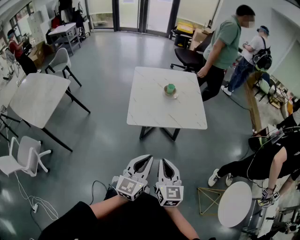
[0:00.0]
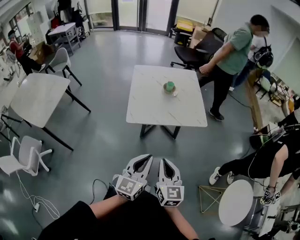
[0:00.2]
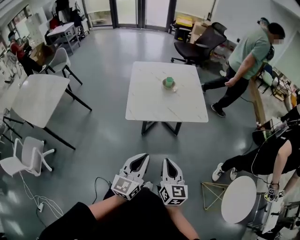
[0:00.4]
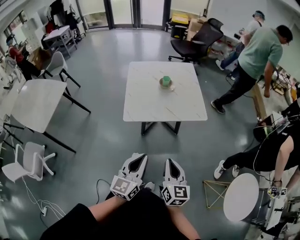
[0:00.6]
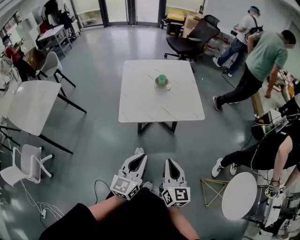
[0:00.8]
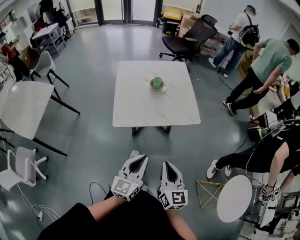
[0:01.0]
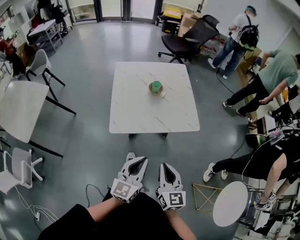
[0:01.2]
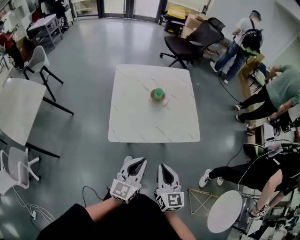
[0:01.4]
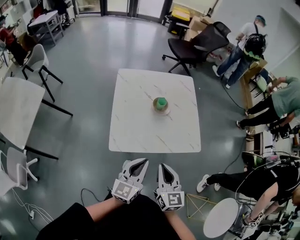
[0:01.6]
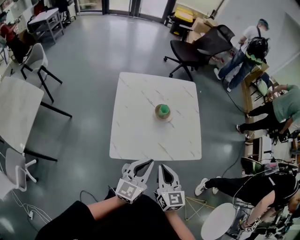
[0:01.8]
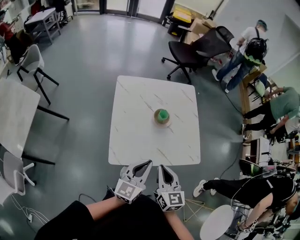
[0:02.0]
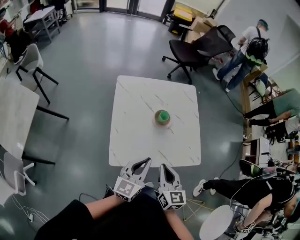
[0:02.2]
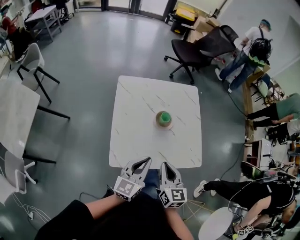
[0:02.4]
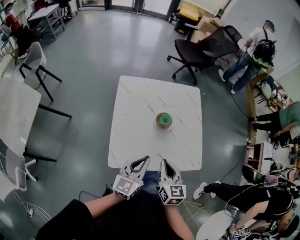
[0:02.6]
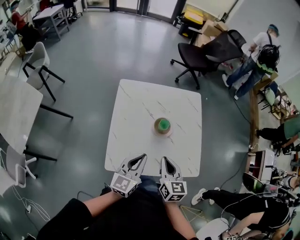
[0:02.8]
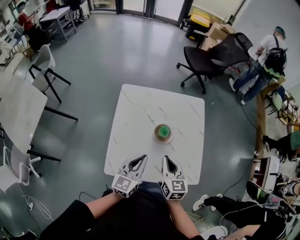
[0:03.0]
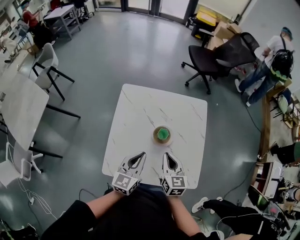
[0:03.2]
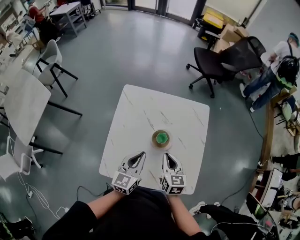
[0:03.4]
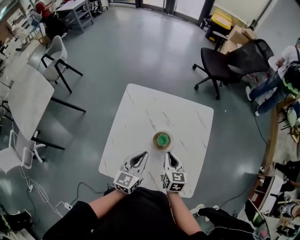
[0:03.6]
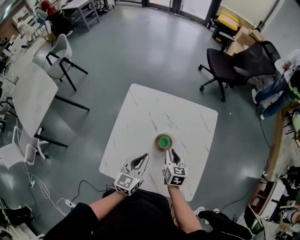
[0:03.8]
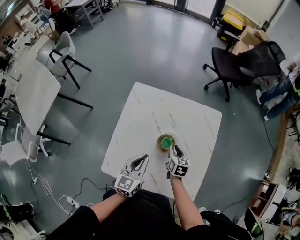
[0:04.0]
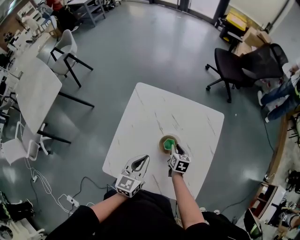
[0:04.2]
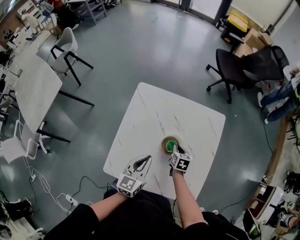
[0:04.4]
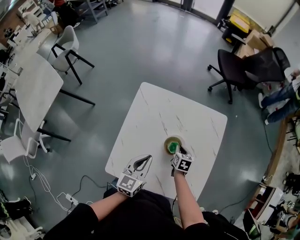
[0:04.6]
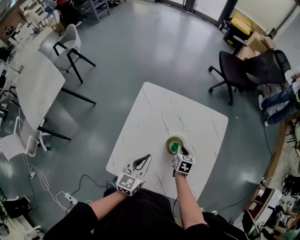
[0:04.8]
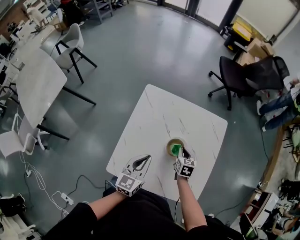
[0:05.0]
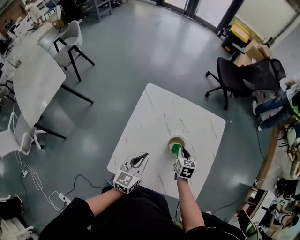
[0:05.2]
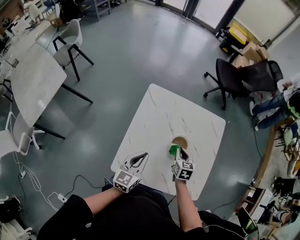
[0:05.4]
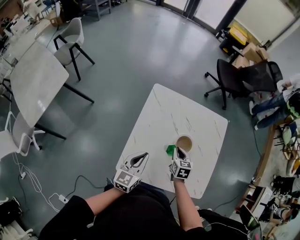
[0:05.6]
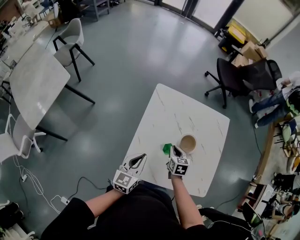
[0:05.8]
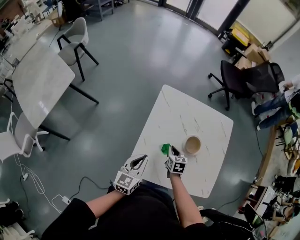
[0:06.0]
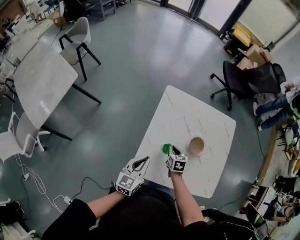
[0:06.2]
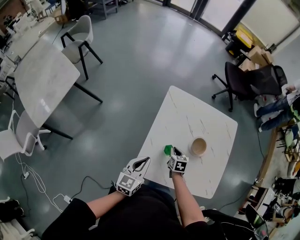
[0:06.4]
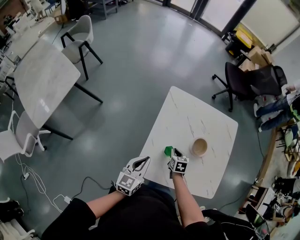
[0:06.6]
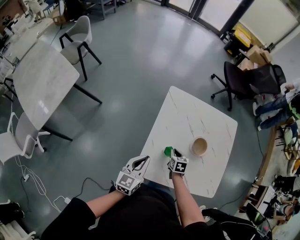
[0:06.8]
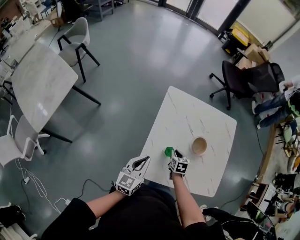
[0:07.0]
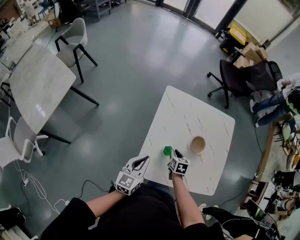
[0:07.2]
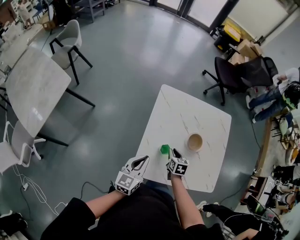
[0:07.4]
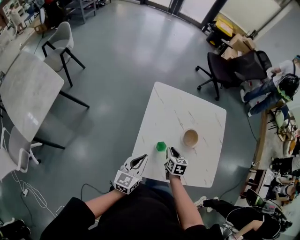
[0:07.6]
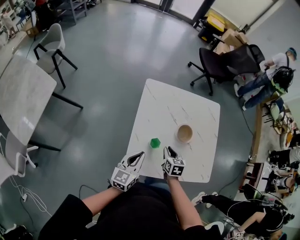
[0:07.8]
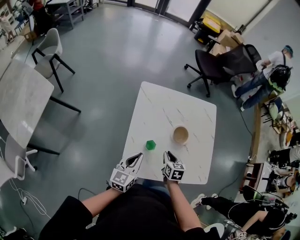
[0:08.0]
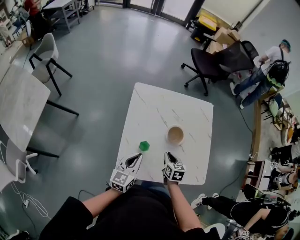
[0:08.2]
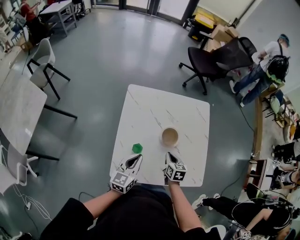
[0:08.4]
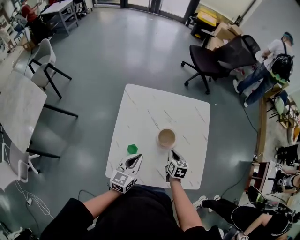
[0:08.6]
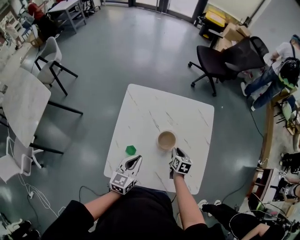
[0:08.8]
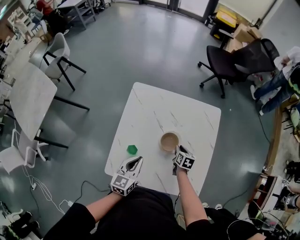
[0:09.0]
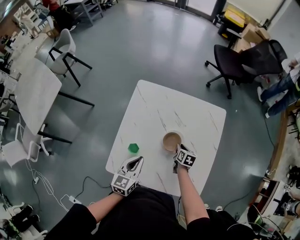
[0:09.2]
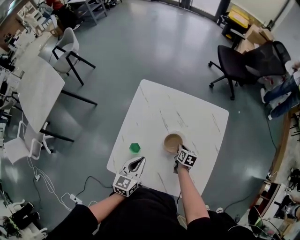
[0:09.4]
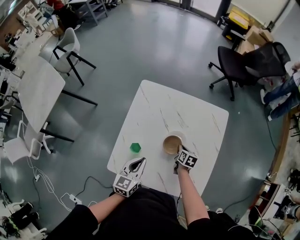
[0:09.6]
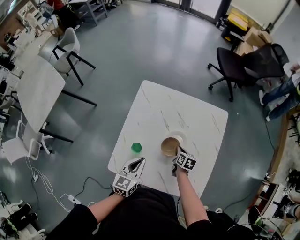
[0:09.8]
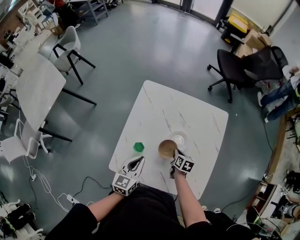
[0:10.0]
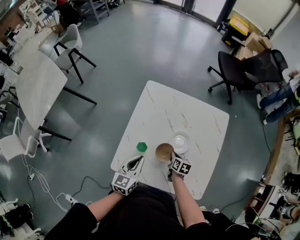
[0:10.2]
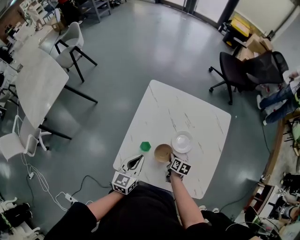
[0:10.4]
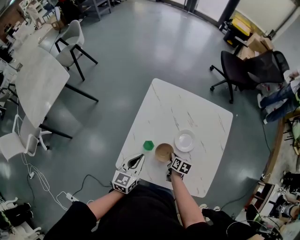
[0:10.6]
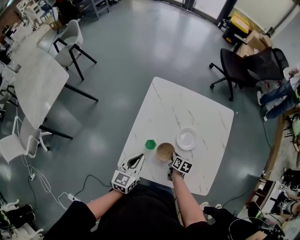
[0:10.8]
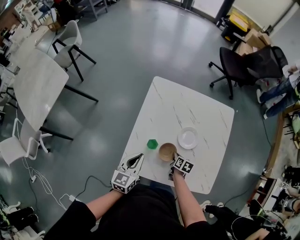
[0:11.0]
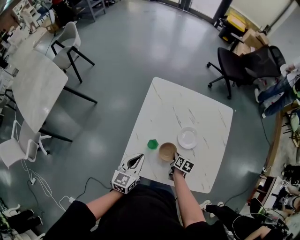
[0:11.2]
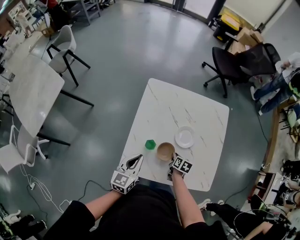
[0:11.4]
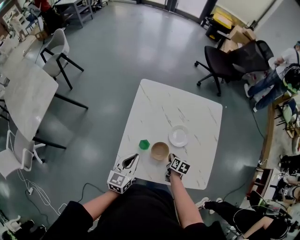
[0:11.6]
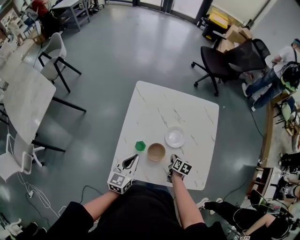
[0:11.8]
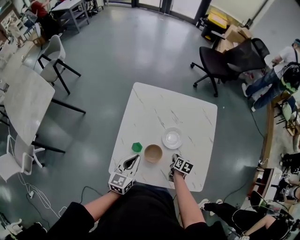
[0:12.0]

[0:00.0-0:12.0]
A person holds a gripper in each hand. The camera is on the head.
0:00.0 to 0:01.6: Both grippers travel together forward, approximately 25 cm.
0:01.6 to 0:03.0: Both grippers move forward, some 25 cm.
0:03.0 to 0:04.4: The left gripper heads forward and downward, covering some 10 cm. The right gripper is displaced downward and forward by some 30 cm, and swivels about 30 degrees.
0:04.4 to 0:06.0: Both grippers travel together to the left, approximately 20 cm.
0:06.0 to 0:07.6: The grippers stay close to where they were, moving slightly.
0:07.6 to 0:09.0: Both grippers move to the right and forward, roughly 20 cm.
0:09.0 to 0:10.4: The right gripper shifts roughly 15 cm to the left and backward. Meanwhile the left gripper heads to the left, covering roughly 5 cm.
0:10.4 to 0:12.0: The right gripper shifts about 10 cm to the right.

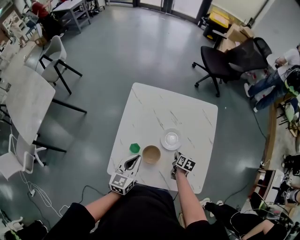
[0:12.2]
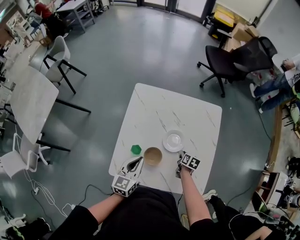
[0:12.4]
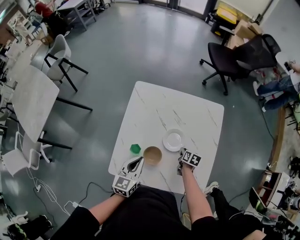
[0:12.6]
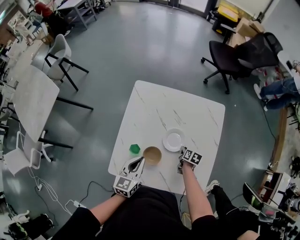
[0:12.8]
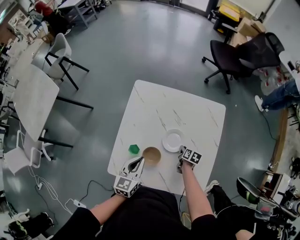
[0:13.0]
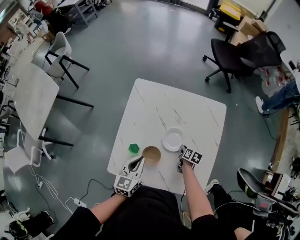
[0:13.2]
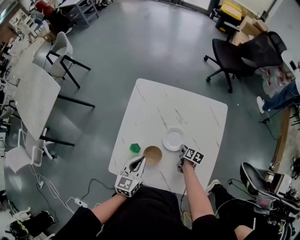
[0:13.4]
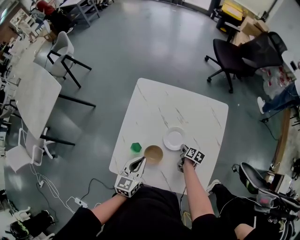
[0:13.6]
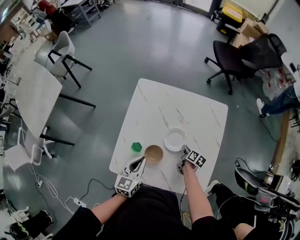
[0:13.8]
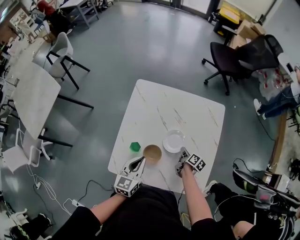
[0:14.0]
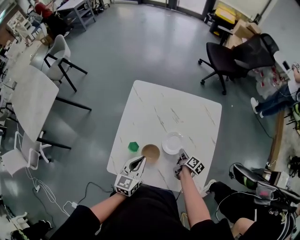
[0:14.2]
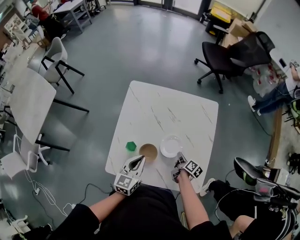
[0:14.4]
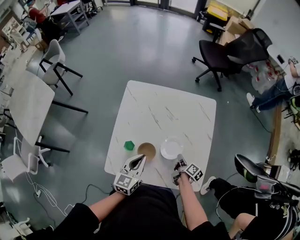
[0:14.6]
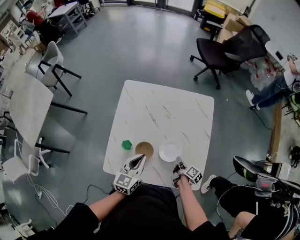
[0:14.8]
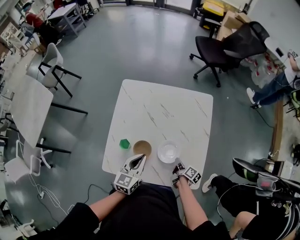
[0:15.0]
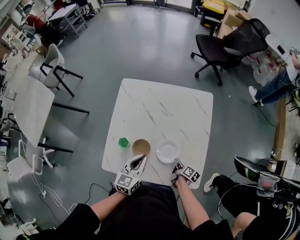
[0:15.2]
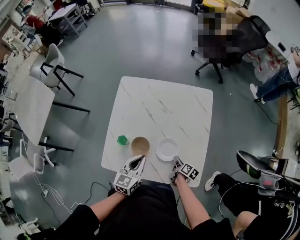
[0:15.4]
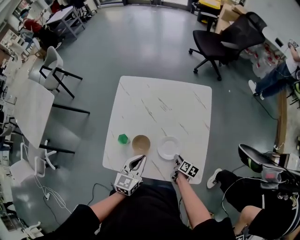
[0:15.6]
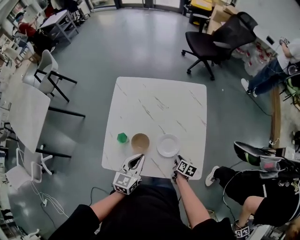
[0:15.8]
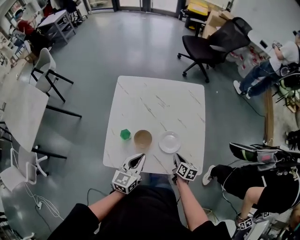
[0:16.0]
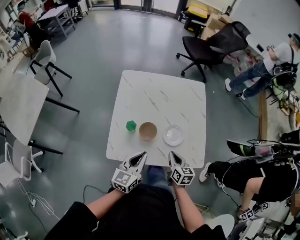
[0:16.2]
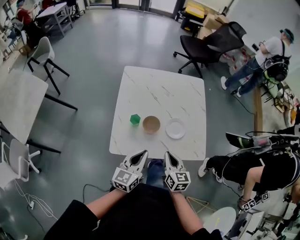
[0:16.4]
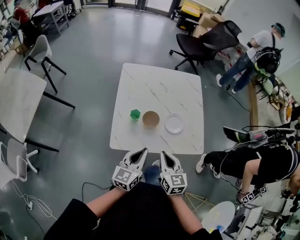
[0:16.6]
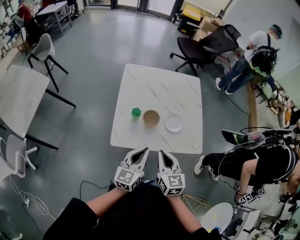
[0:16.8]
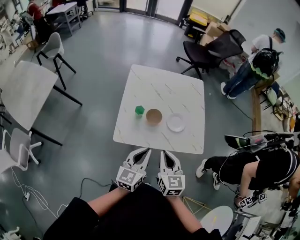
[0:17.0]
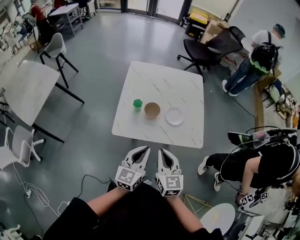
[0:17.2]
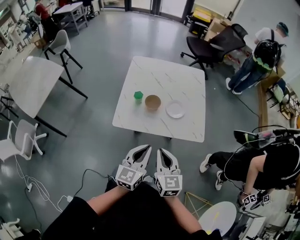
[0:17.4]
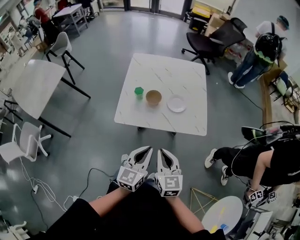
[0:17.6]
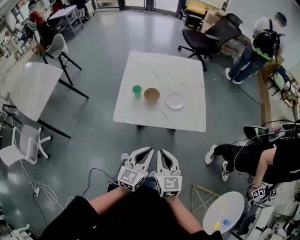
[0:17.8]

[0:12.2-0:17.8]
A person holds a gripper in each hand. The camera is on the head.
0:12.2 to 0:13.6: The right gripper travels forward by roughly 5 cm.
0:13.6 to 0:15.0: The right gripper goes some 15 cm backward, and turns by some 30 degrees; the left gripper heads to the right, covering some 5 cm.
0:15.0 to 0:16.4: The right gripper moves upward, to the left and backward, approximately 30 cm, rolls counterclockwise, seen from behind, by some 60 degrees, and opens, then closes again. Meanwhile the left gripper heads backward and to the left, covering about 20 cm.
0:16.4 to 0:17.8: The right gripper goes about 25 cm backward and upward. The left gripper heads backward and to the right, covering some 25 cm.

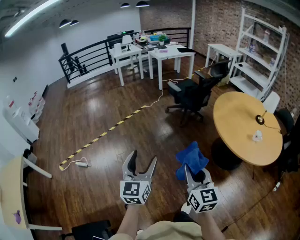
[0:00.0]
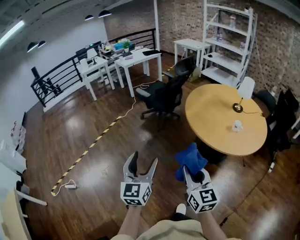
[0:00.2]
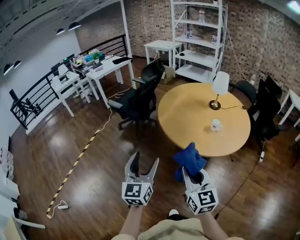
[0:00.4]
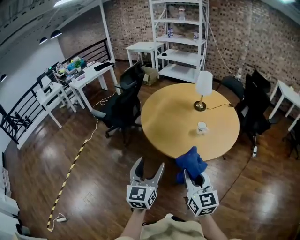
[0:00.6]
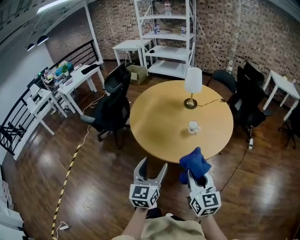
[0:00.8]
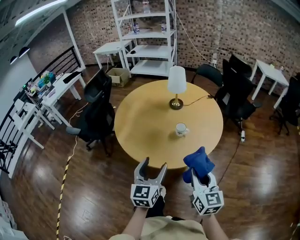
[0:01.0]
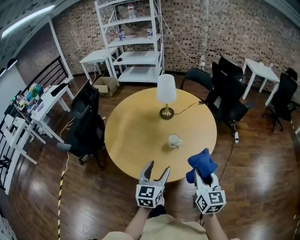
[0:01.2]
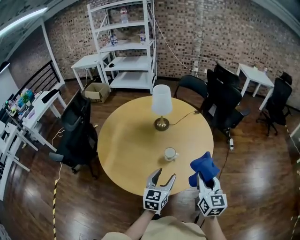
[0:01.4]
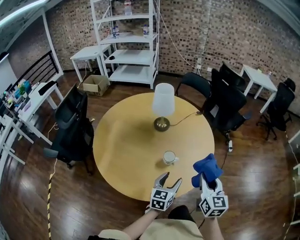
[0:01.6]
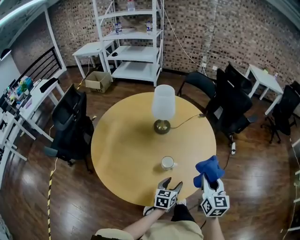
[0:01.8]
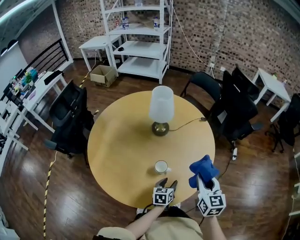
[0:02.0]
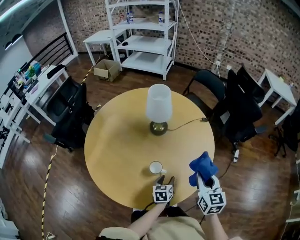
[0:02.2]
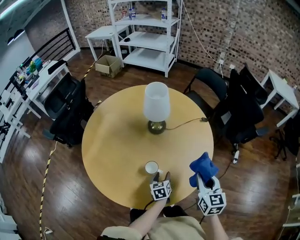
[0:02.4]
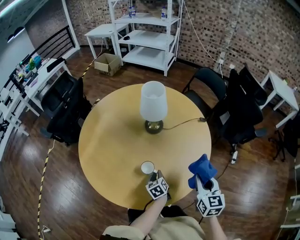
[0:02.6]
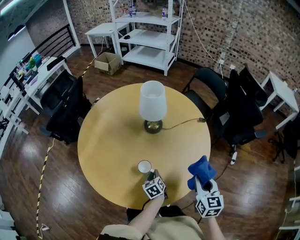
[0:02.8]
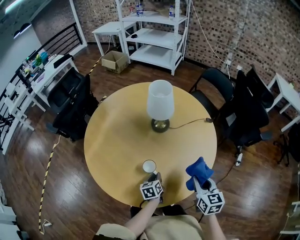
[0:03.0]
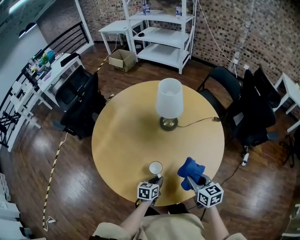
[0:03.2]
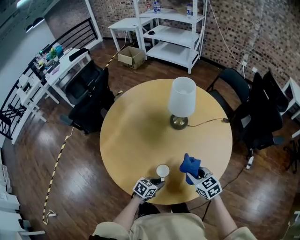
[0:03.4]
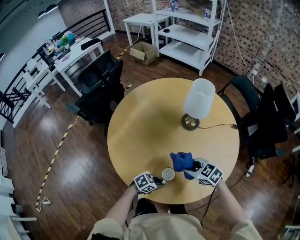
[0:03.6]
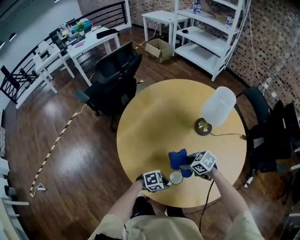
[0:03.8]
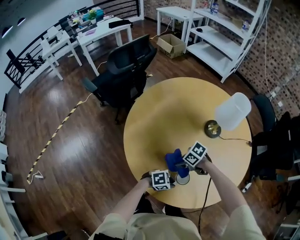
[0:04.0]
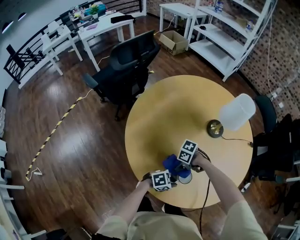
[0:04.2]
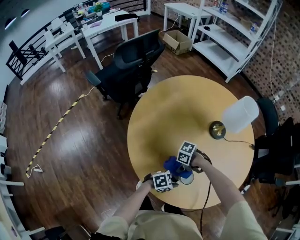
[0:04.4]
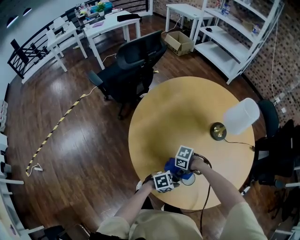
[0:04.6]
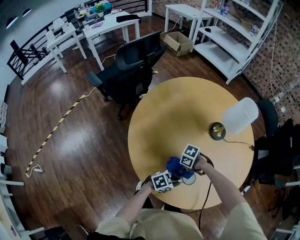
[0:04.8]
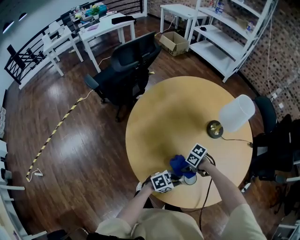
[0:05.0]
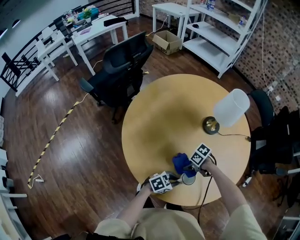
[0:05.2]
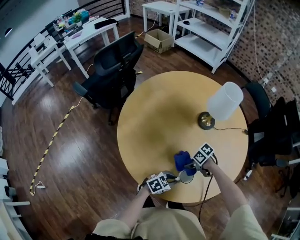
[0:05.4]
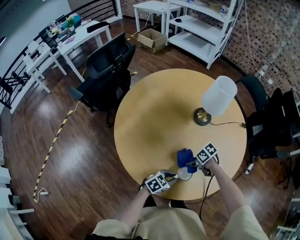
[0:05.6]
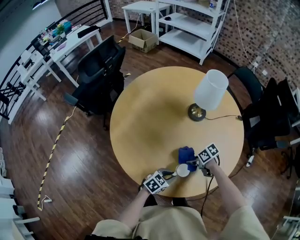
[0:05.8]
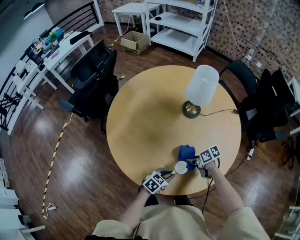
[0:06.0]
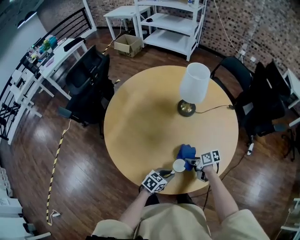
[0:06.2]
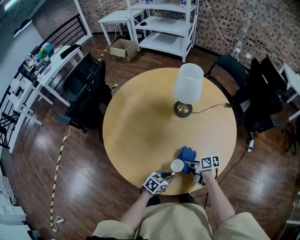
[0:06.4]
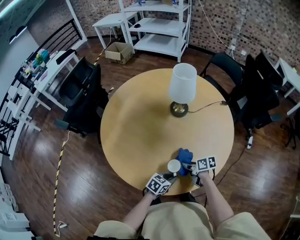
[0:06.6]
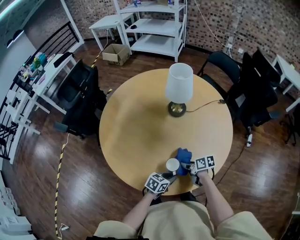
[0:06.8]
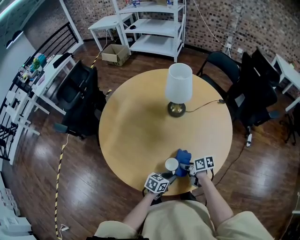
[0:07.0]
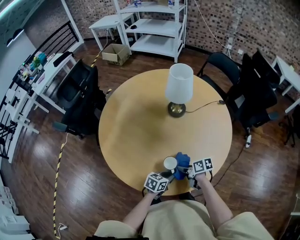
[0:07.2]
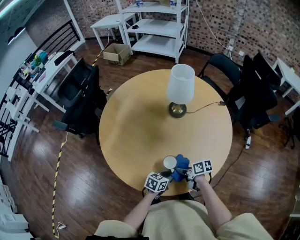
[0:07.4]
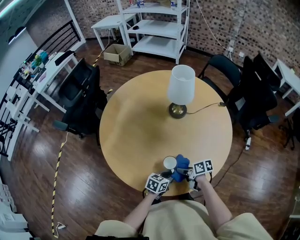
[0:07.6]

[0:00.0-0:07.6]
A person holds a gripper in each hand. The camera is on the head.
0:00.0 to 0:01.6: The pair of grippers is taken some 80 cm. The right gripper rotates some 60 degrees. Meanwhile the left gripper changes its angle by roughly 70 degrees.
0:01.6 to 0:03.0: The right gripper moves roughly 20 cm, and changes its angle by about 30 degrees. The left gripper heads downward, covering approximately 15 cm, turns by some 50 degrees, and closes its fingers.
0:03.0 to 0:04.6: The left gripper shifts by roughly 10 cm, and changes its angle by some 60 degrees. Meanwhile the right gripper moves approximately 35 cm, and turns by roughly 110 degrees.
0:04.6 to 0:06.0: The right gripper ends up about 15 cm from where it was, and turns by roughly 70 degrees.
0:06.0 to 0:07.6: The right gripper moves approximately 5 cm, and turns by some 20 degrees.
